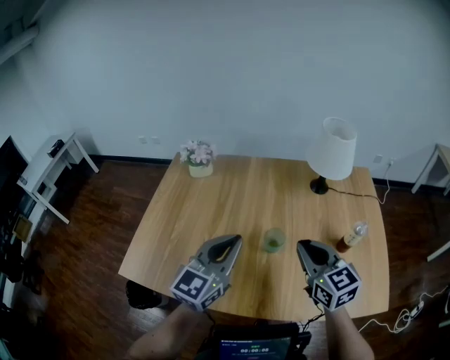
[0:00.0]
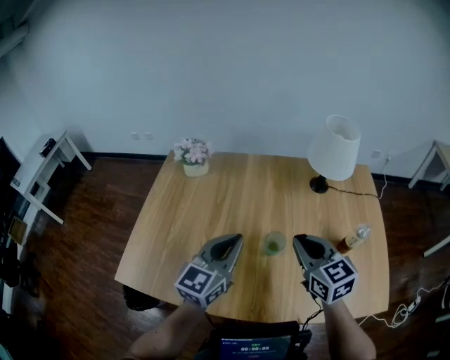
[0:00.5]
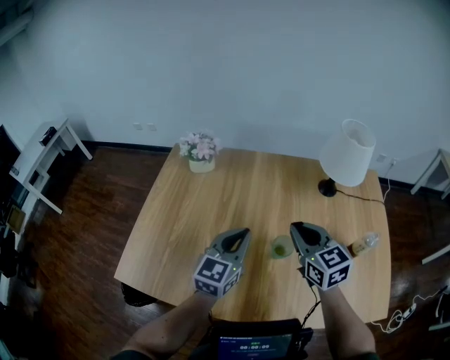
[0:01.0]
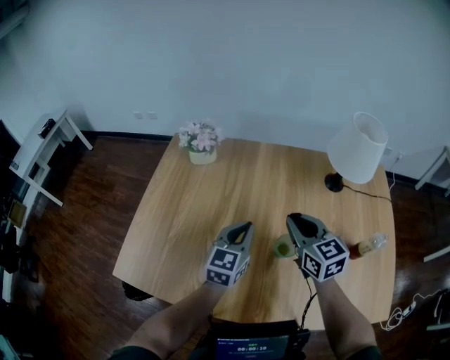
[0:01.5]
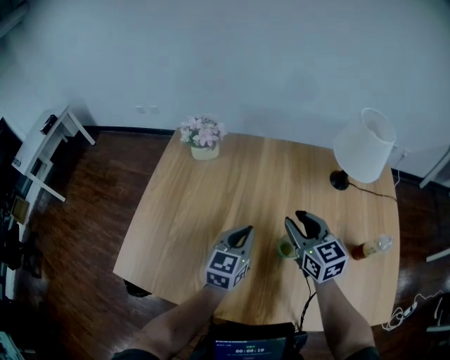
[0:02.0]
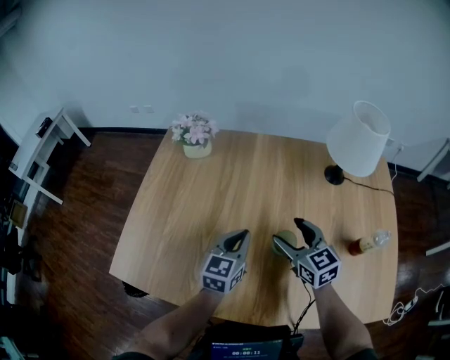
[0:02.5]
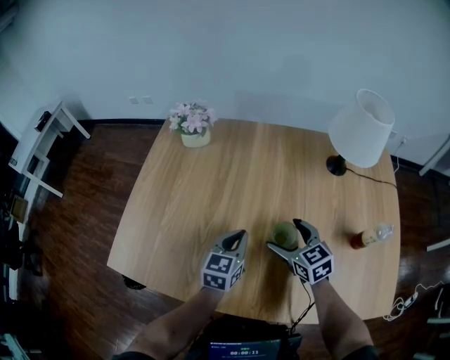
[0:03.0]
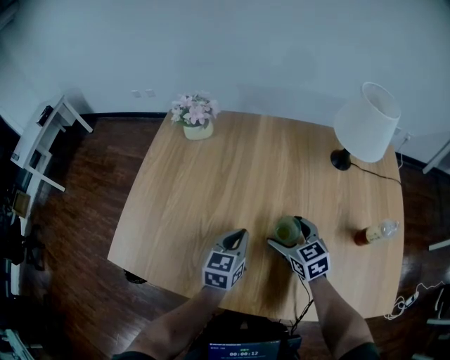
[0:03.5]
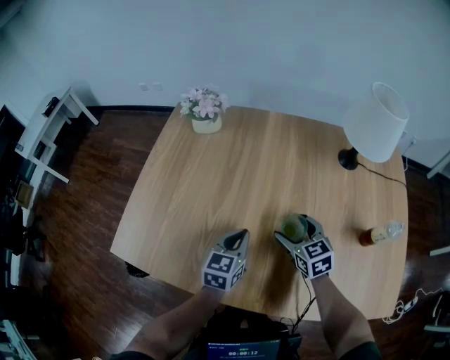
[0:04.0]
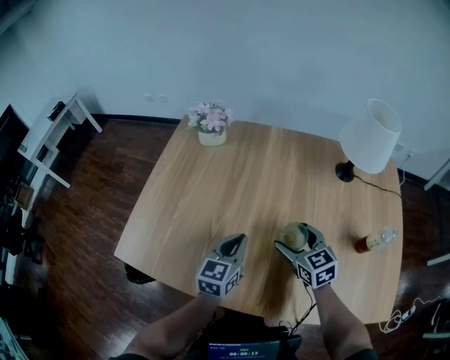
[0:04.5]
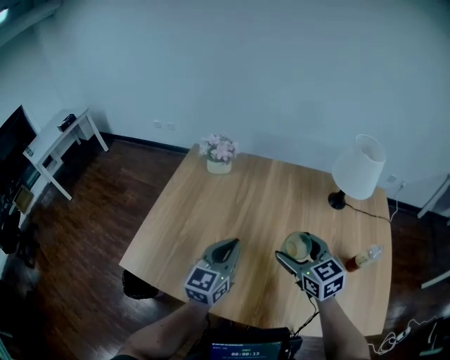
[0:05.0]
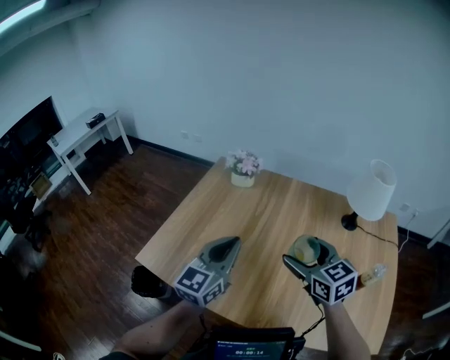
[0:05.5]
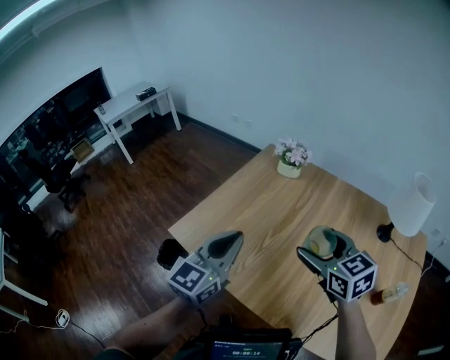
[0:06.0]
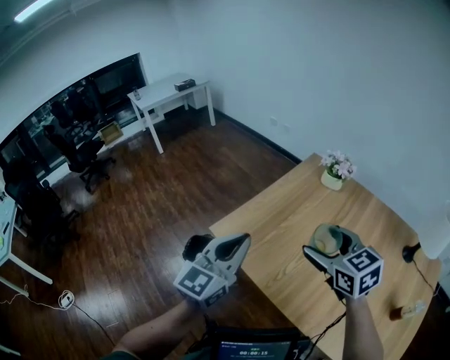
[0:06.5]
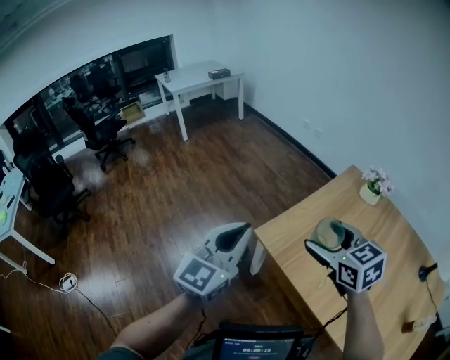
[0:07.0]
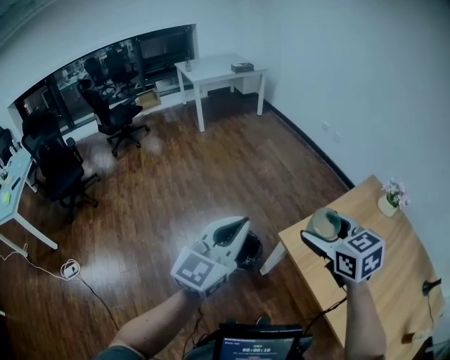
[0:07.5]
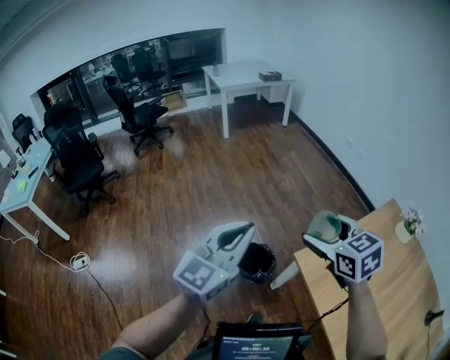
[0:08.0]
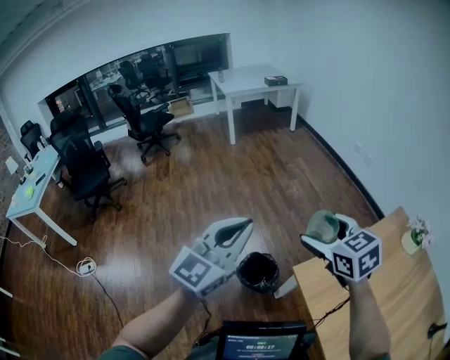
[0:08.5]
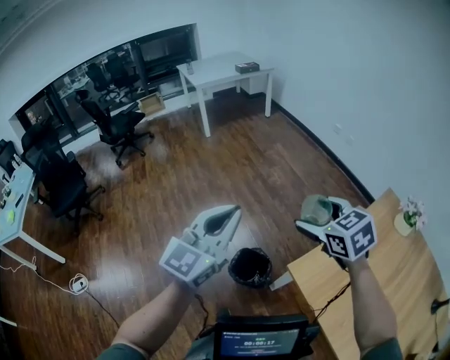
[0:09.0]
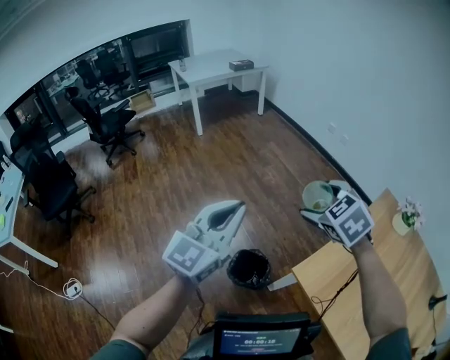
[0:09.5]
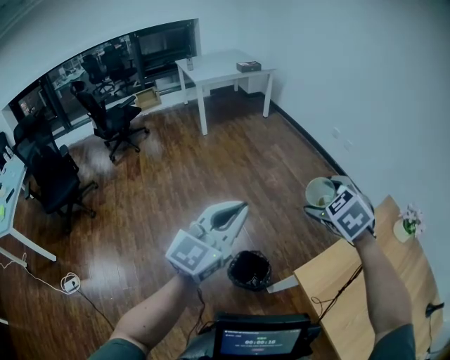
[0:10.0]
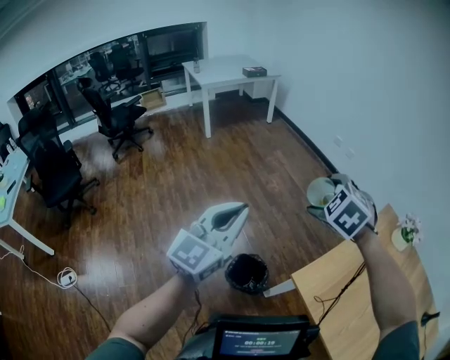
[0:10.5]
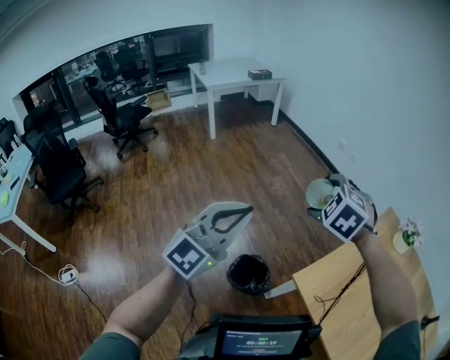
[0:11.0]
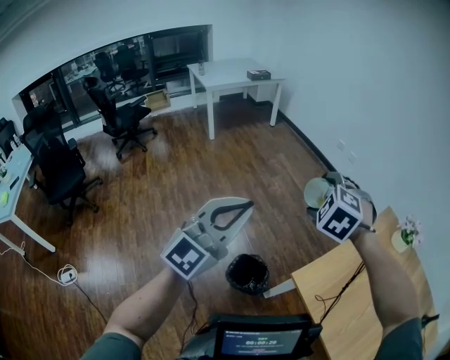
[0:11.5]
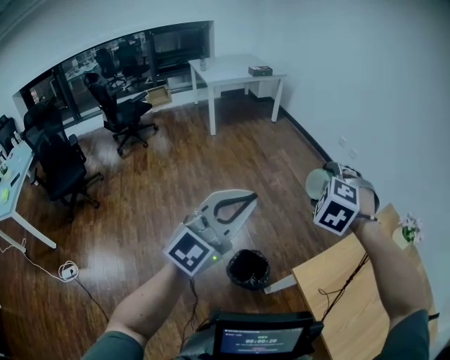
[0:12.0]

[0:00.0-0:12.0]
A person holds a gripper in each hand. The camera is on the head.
0:00.0 to 0:02.0: The left gripper heads downward and forward, covering roughly 20 cm; the right gripper moves forward and downward, some 15 cm.
0:02.0 to 0:04.0: The right gripper shifts some 15 cm downward, and opens up. The left gripper heads downward and backward, covering about 10 cm.
0:04.0 to 0:06.0: Both grippers move upward and to the left, some 30 cm. The right gripper rotates roughly 30 degrees; the left gripper turns by some 30 degrees.
0:06.0 to 0:08.0: Both grippers are carried roughly 50 cm. The right gripper changes its angle by some 30 degrees. The left gripper rotates approximately 30 degrees.
0:08.0 to 0:10.0: Both grippers move forward, roughly 15 cm. The right gripper turns by roughly 30 degrees.
0:10.0 to 0:12.0: The left gripper ends up about 5 cm from where it was, and swivels some 20 degrees. Meanwhile the right gripper changes its angle by about 30 degrees.

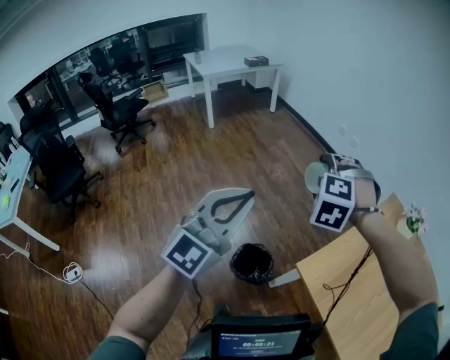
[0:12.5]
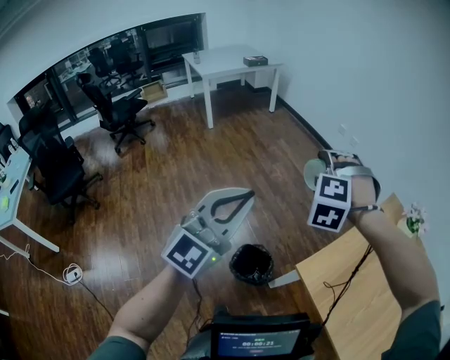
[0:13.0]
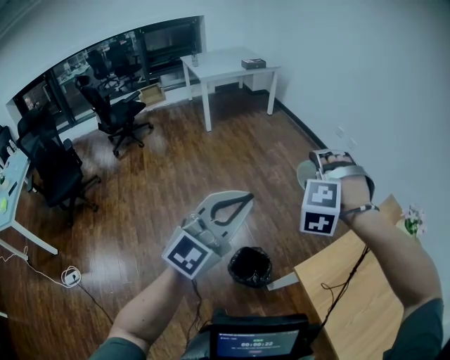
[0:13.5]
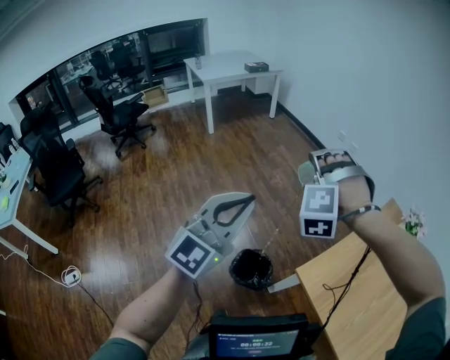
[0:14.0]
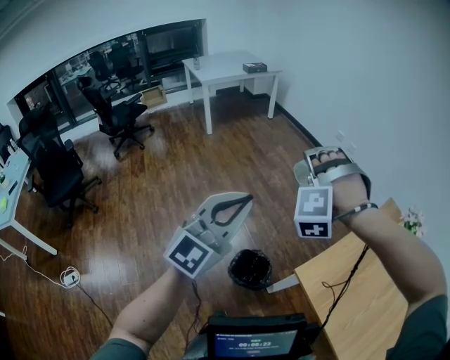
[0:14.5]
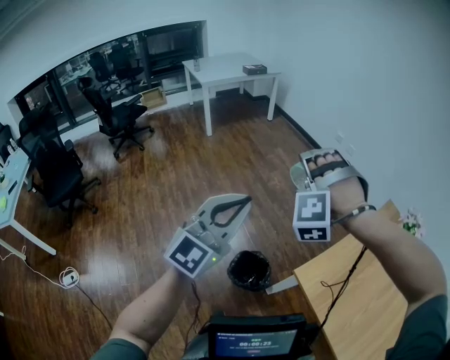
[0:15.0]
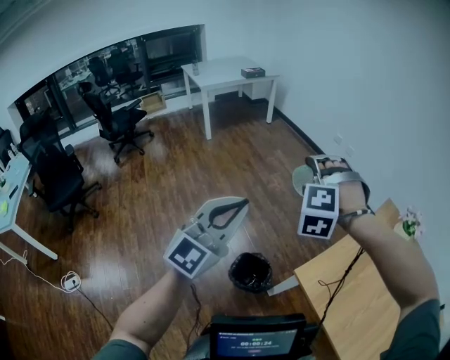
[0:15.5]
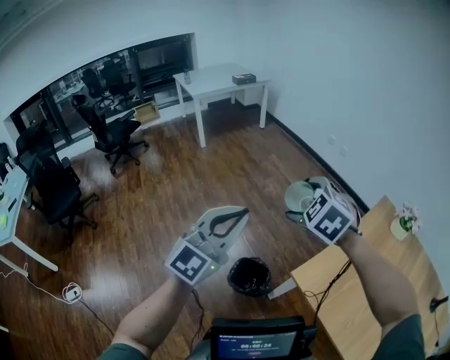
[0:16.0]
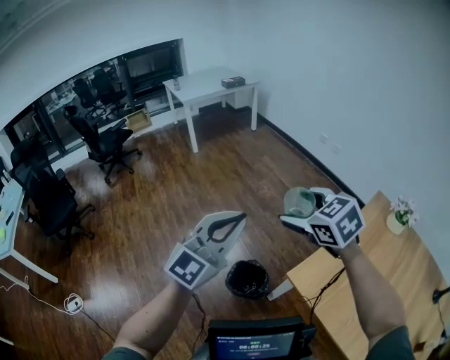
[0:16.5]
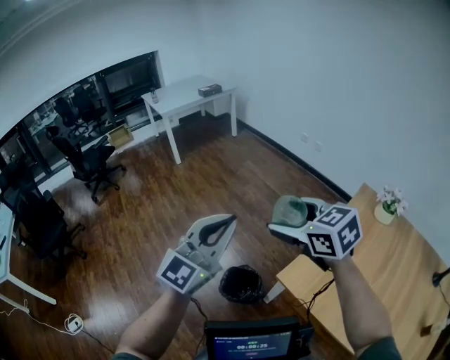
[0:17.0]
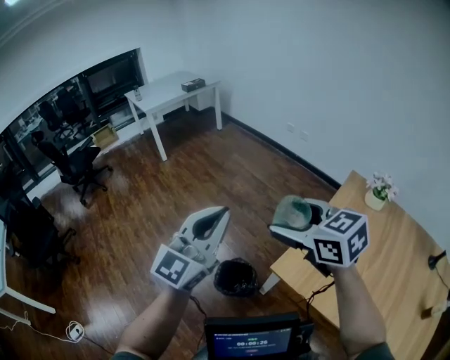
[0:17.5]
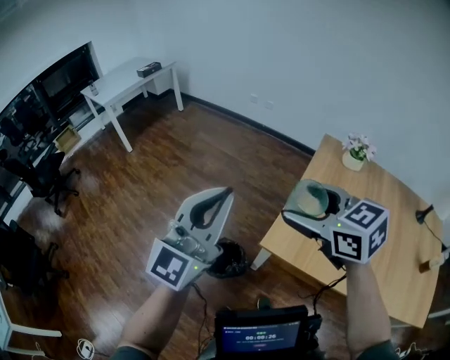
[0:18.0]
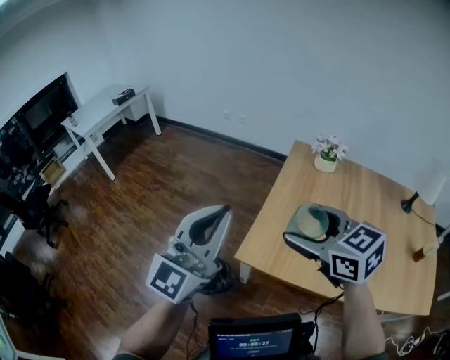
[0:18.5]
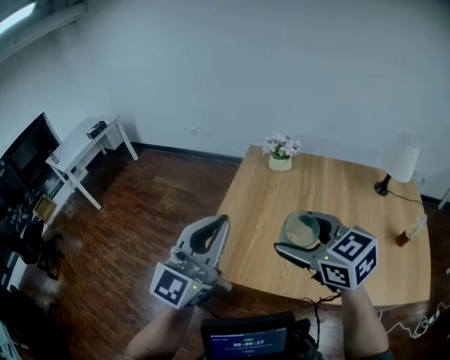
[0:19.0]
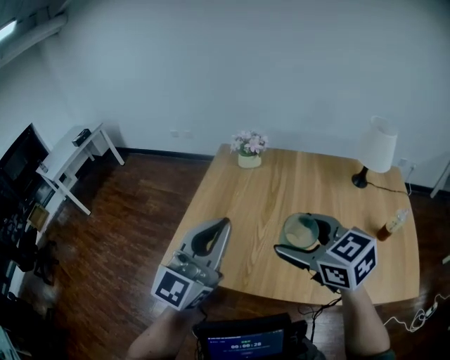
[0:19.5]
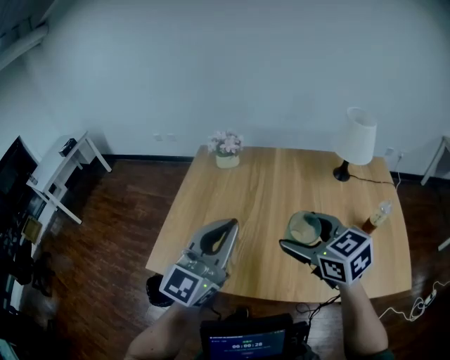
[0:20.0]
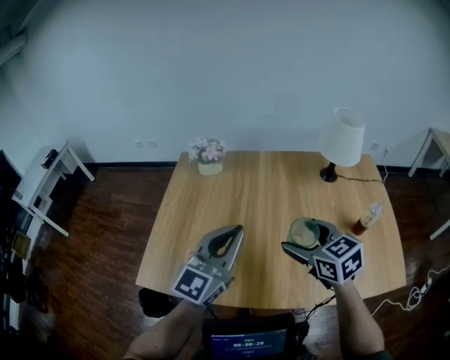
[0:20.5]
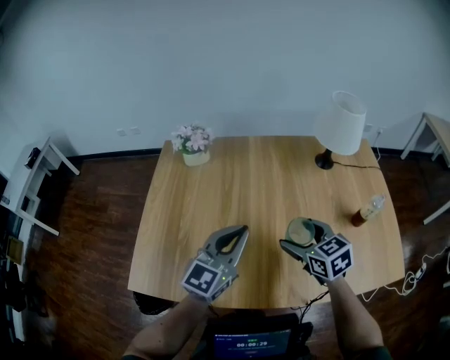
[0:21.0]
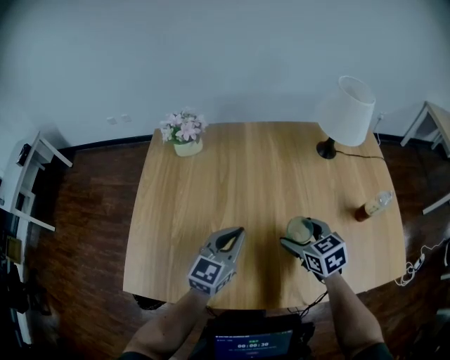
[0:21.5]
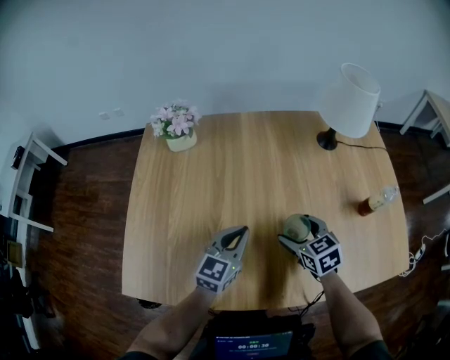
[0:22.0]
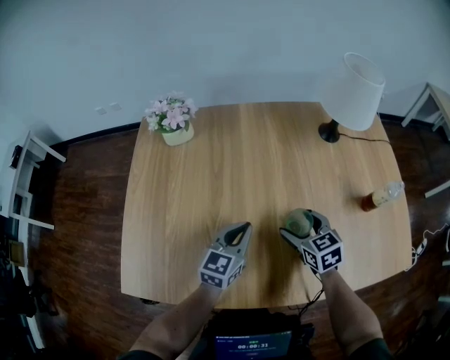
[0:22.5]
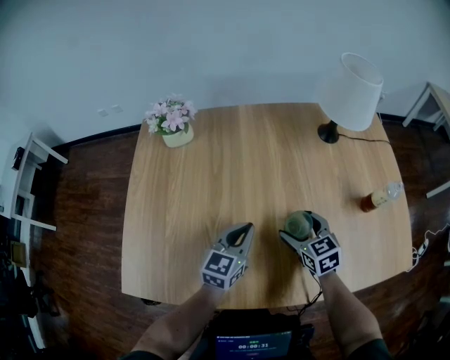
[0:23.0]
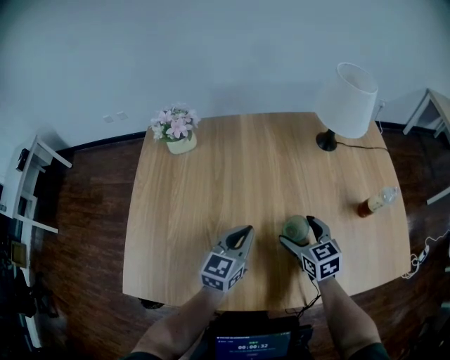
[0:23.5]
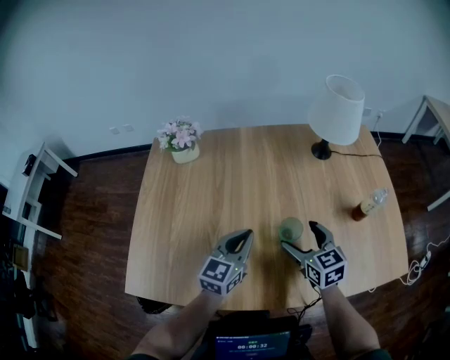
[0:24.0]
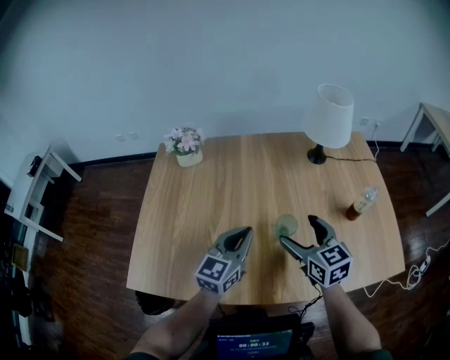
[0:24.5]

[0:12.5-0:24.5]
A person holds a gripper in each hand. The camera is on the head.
0:12.5 to 0:14.5: The right gripper swivels roughly 30 degrees.
0:14.5 to 0:16.5: The right gripper shifts by about 5 cm, and twists some 80 degrees clockwise, seen from behind.
0:16.5 to 0:18.5: The left gripper goes some 15 cm to the right, and changes its angle by roughly 30 degrees; the right gripper travels to the right and backward by about 25 cm, and changes its angle by about 40 degrees.
0:18.5 to 0:20.5: The two grippers travel together, to the right, some 50 cm. The left gripper turns by about 30 degrees, while the right gripper rotates roughly 30 degrees.
0:20.5 to 0:22.5: The left gripper is displaced downward and forward by about 25 cm, and swivels roughly 30 degrees, while the right gripper goes roughly 20 cm downward.
0:22.5 to 0:24.5: Both grippers travel together upward, approximately 10 cm.

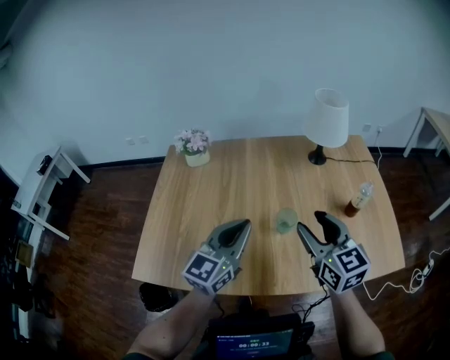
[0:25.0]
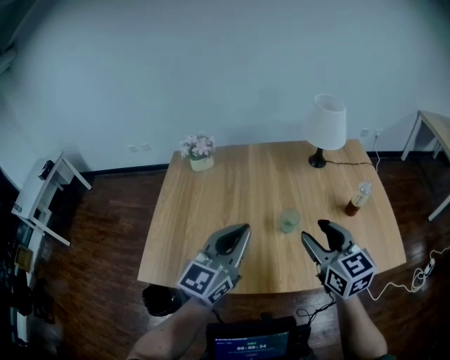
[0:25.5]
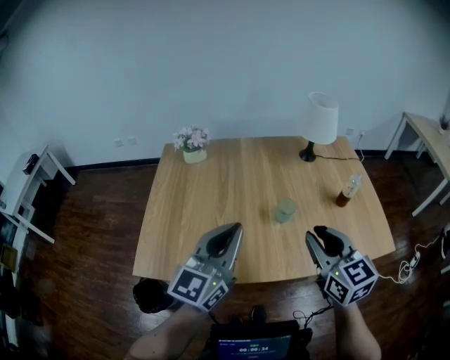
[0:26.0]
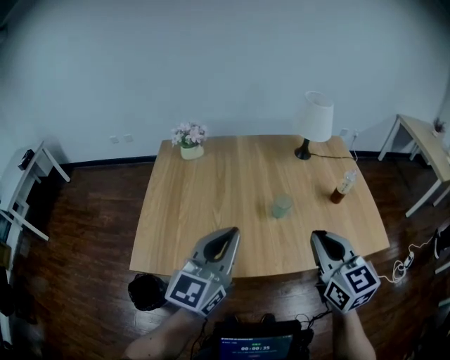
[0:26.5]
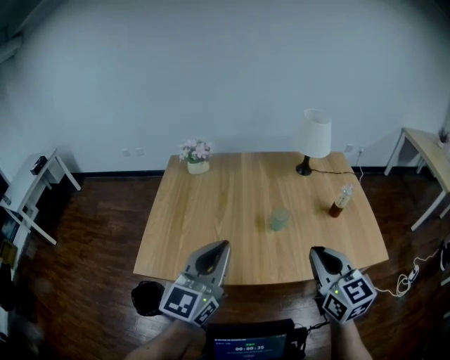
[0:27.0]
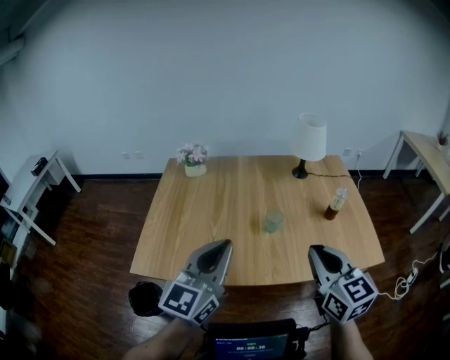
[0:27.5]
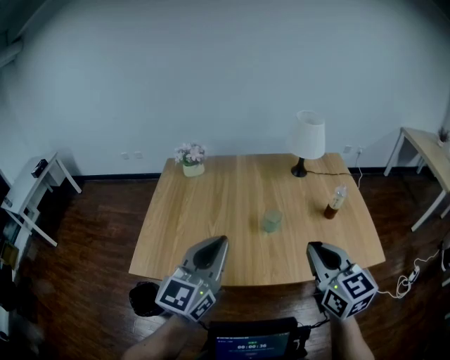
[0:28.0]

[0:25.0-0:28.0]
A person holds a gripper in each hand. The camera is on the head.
0:25.0 to 0:26.5: The right gripper travels backward by roughly 15 cm, and closes. The left gripper moves backward, to the left and upward, some 15 cm.
0:26.5 to 0:28.0: The right gripper moves approximately 5 cm.
